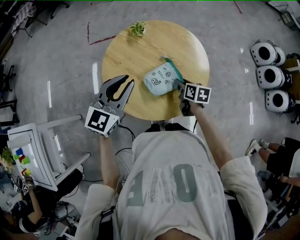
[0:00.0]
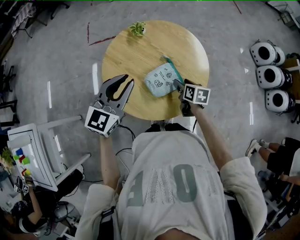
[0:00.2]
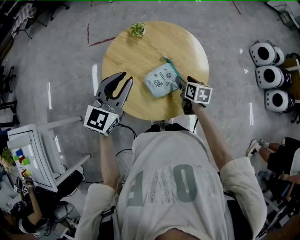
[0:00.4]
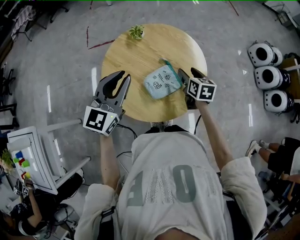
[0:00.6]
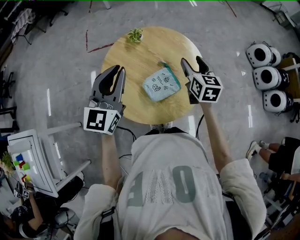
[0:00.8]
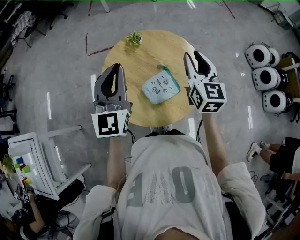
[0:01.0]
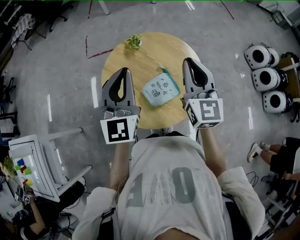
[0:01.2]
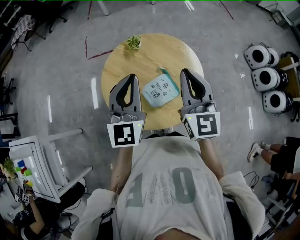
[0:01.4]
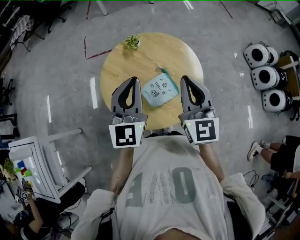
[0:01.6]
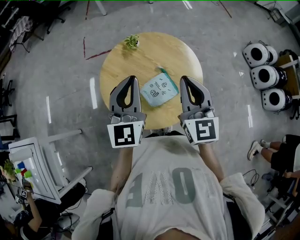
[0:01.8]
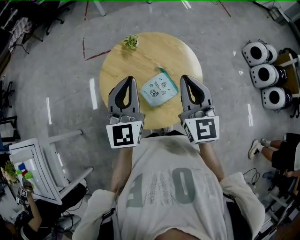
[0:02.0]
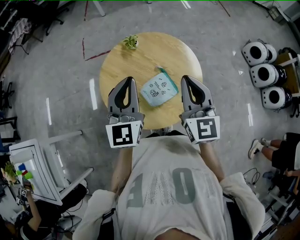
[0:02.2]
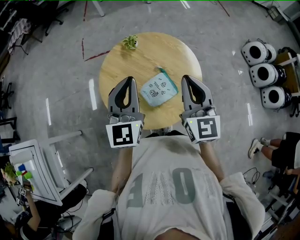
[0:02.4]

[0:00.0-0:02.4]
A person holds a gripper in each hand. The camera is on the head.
0:00.0 to 0:01.2: The left gripper is displaced upward by approximately 10 cm, and turns by some 30 degrees. The right gripper shifts approximately 30 cm upward, angles its fingers upward, by about 40 degrees, and opens, then closes once more.
0:01.2 to 0:02.4: The right gripper shifts by roughly 5 cm.

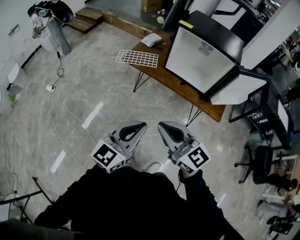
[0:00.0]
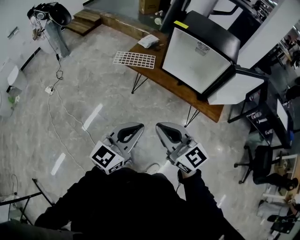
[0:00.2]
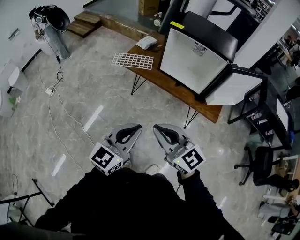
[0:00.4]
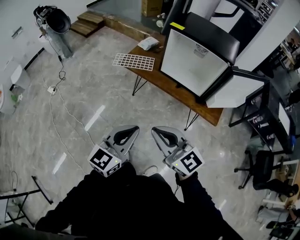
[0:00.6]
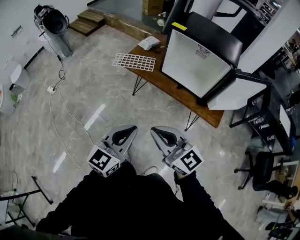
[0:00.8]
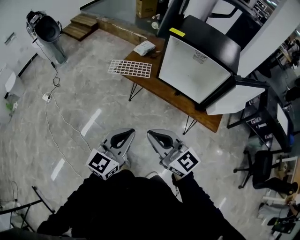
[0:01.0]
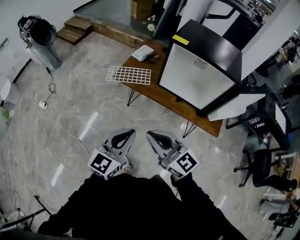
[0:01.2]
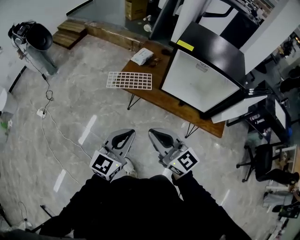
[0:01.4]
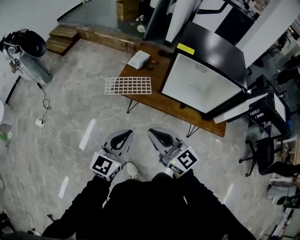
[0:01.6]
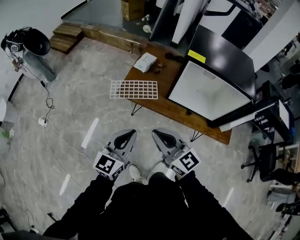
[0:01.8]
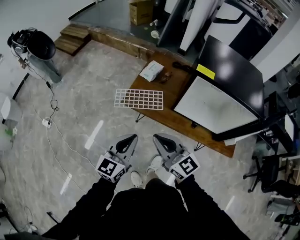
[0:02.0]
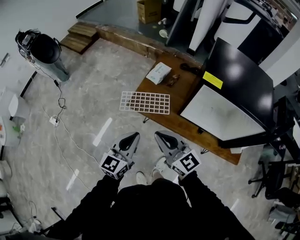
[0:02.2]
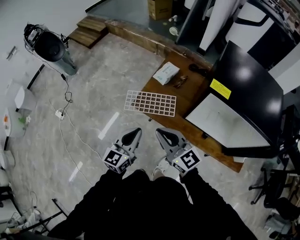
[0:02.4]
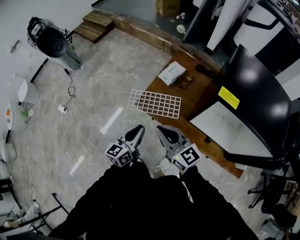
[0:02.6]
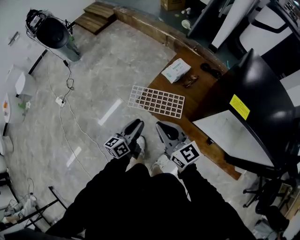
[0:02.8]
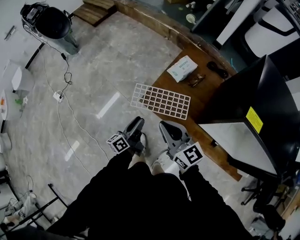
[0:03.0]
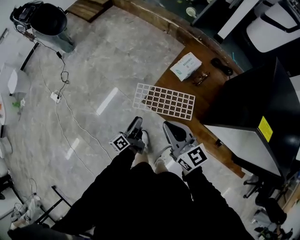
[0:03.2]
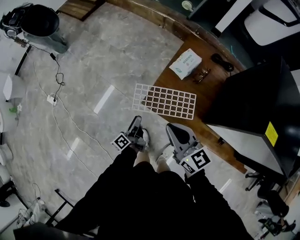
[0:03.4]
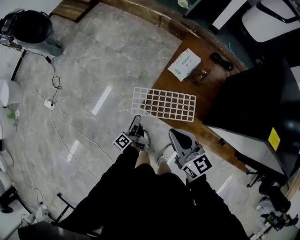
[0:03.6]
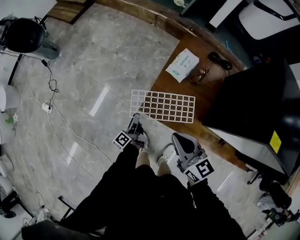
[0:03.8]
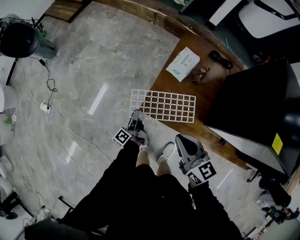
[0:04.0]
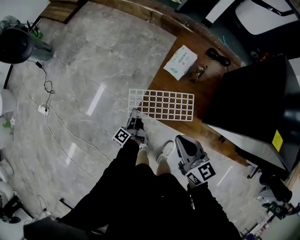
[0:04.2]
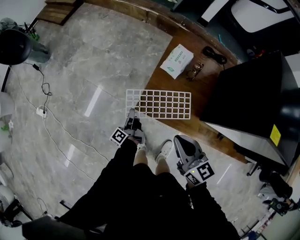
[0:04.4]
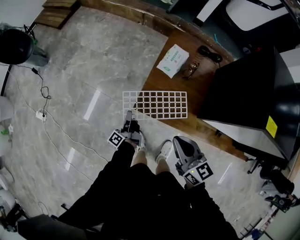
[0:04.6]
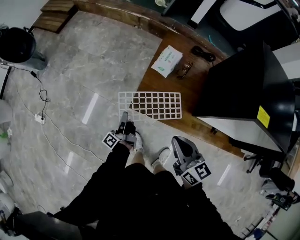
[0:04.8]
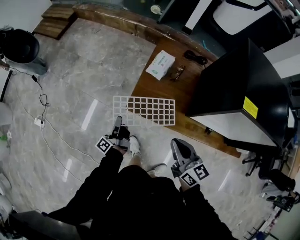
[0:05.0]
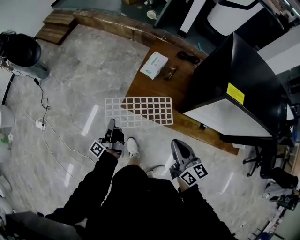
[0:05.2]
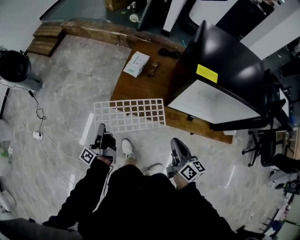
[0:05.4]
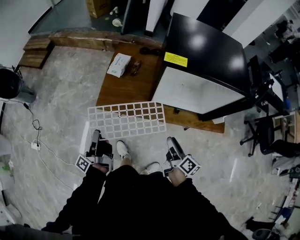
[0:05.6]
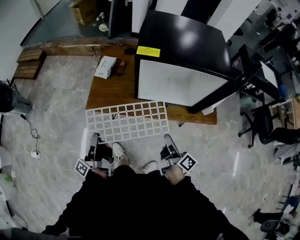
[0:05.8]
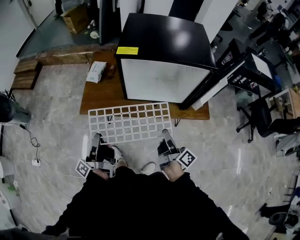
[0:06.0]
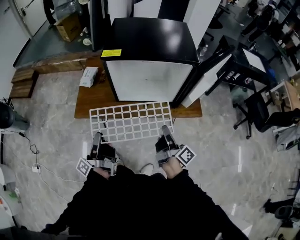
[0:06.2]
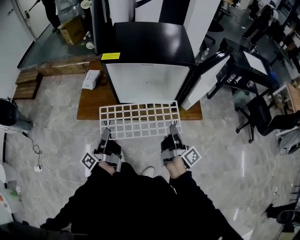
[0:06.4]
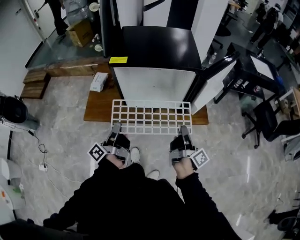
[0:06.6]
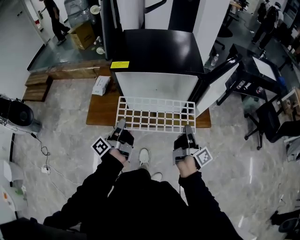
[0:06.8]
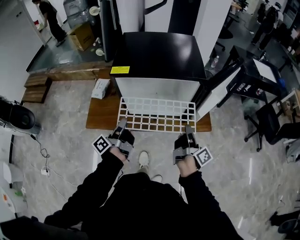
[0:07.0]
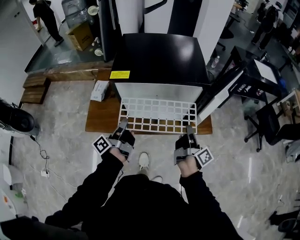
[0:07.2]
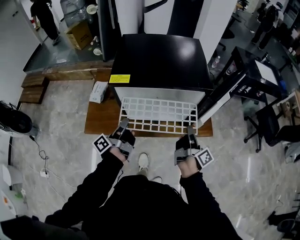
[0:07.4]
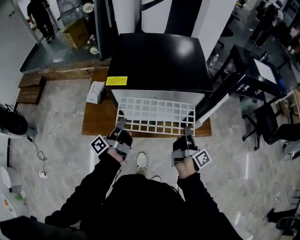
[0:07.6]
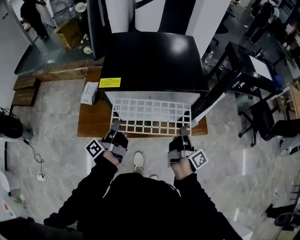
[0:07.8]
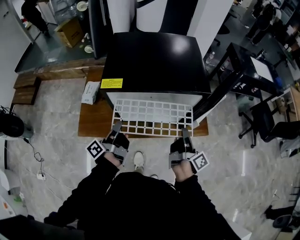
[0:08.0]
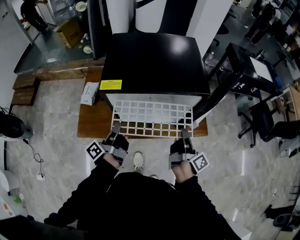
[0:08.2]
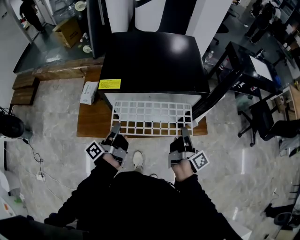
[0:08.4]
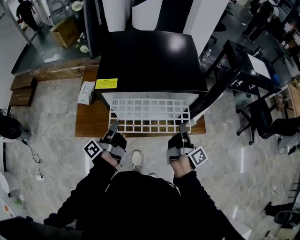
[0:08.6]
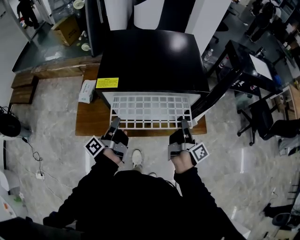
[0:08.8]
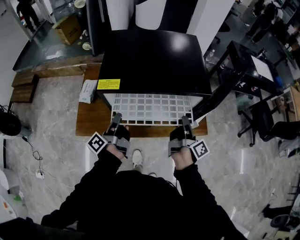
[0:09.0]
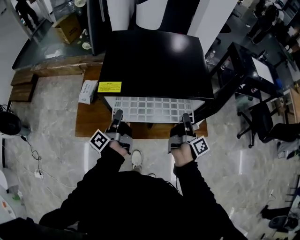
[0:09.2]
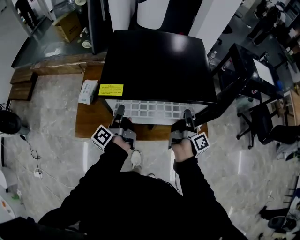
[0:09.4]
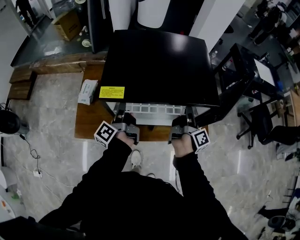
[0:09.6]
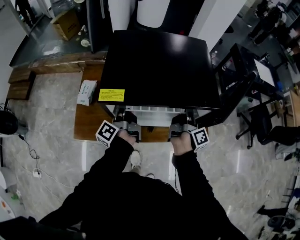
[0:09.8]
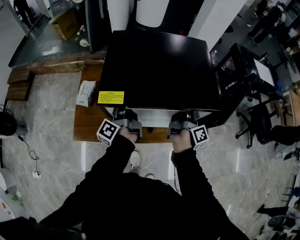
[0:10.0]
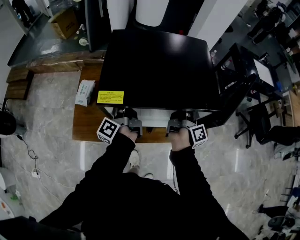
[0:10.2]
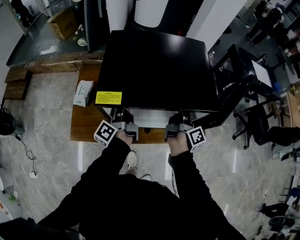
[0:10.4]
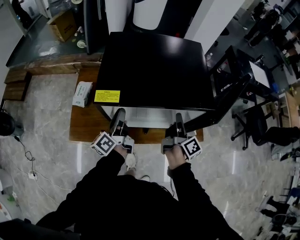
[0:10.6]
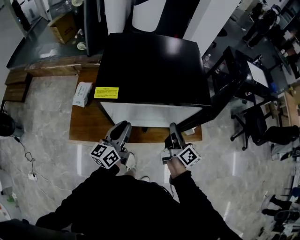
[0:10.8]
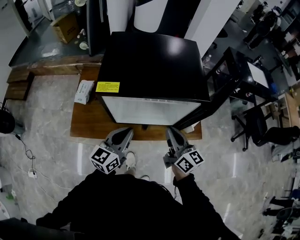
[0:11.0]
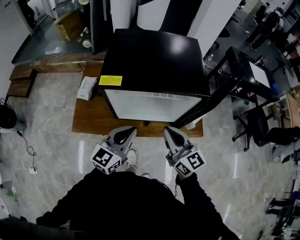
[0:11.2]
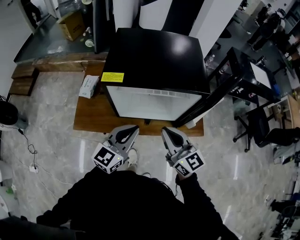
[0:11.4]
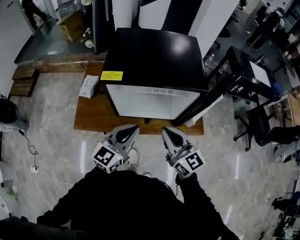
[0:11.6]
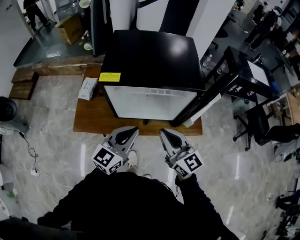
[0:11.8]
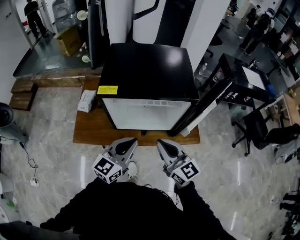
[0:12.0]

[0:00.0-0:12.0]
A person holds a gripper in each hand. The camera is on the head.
0:00.0 to 0:01.6: The grippers both shift forward by roughly 25 cm.
0:01.6 to 0:03.0: The right gripper travels forward by about 30 cm, while the left gripper travels forward and downward by approximately 40 cm, twists some 60 degrees counterclockwise, seen from behind, and opens.
0:03.0 to 0:04.4: The left gripper heads downward and forward, covering some 20 cm, rotates approximately 30 degrees, and closes. The right gripper moves downward, approximately 5 cm, and changes its angle by about 20 degrees.
0:04.4 to 0:06.0: The left gripper shifts by some 50 cm, and rotates about 30 degrees, while the right gripper goes up and down, roughly 5 cm each way, reversing 2 times, swivels approximately 70 degrees, and opens.
0:06.0 to 0:07.6: Both grippers travel together forward and to the right, some 20 cm. The left gripper turns by some 20 degrees. Meanwhile the right gripper turns by roughly 20 degrees, and closes up.
0:07.6 to 0:09.0: The right gripper heads forward, covering approximately 5 cm.
0:09.0 to 0:10.4: The two grippers go about 10 cm forward.
0:10.4 to 0:12.0: The left gripper heads backward and to the right, covering some 30 cm, and twists roughly 60 degrees clockwise, seen from behind. Meanwhile the right gripper moves backward and upward, about 25 cm, and turns by roughly 80 degrees.

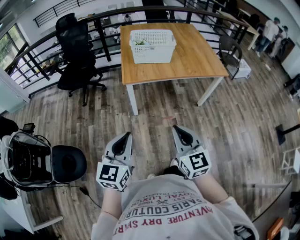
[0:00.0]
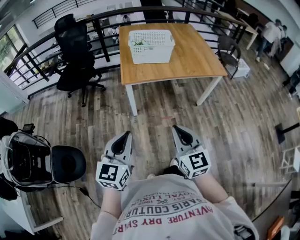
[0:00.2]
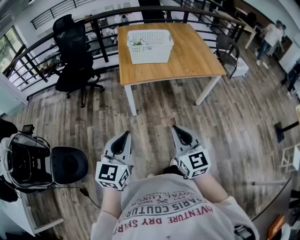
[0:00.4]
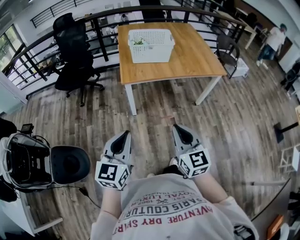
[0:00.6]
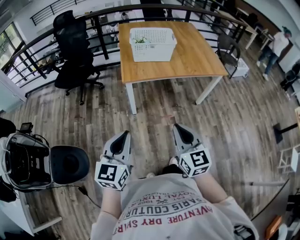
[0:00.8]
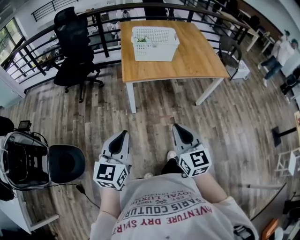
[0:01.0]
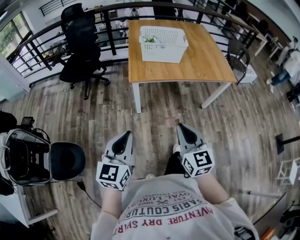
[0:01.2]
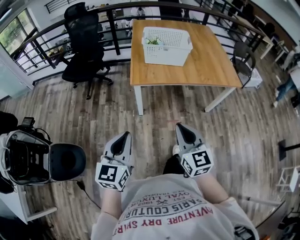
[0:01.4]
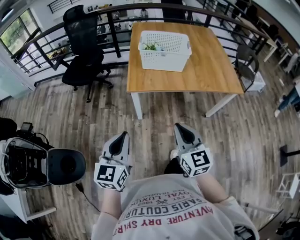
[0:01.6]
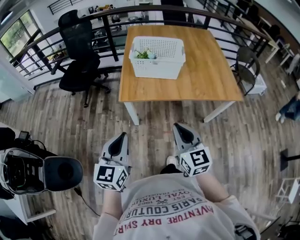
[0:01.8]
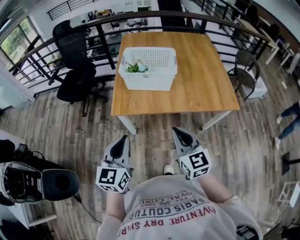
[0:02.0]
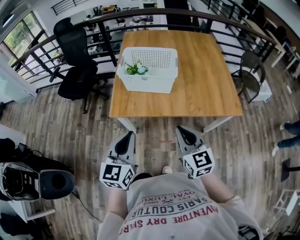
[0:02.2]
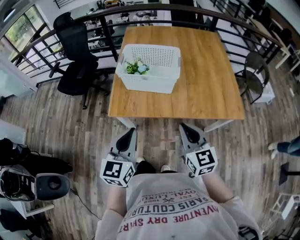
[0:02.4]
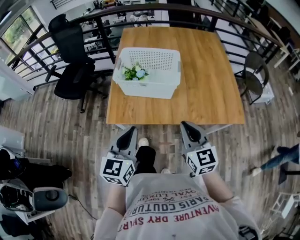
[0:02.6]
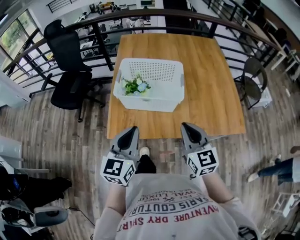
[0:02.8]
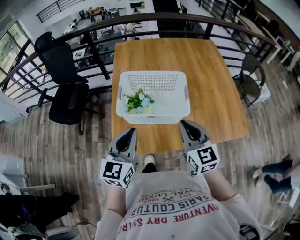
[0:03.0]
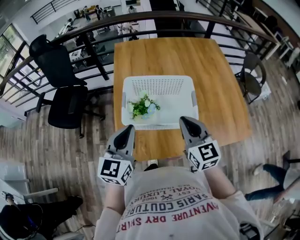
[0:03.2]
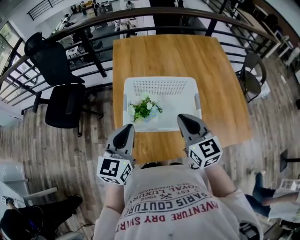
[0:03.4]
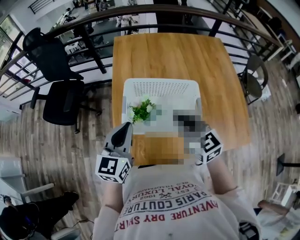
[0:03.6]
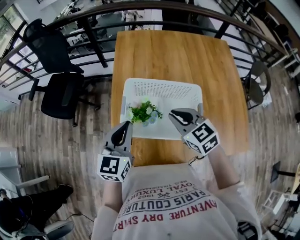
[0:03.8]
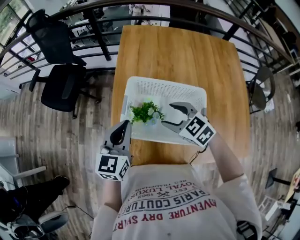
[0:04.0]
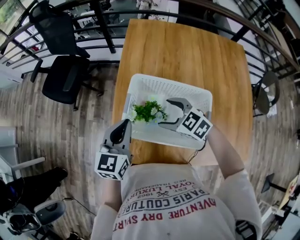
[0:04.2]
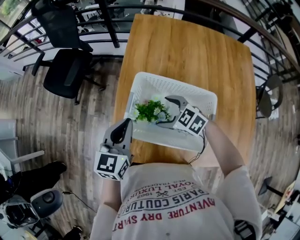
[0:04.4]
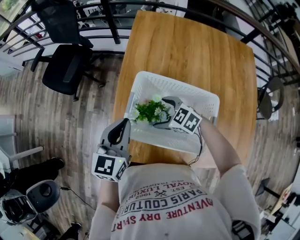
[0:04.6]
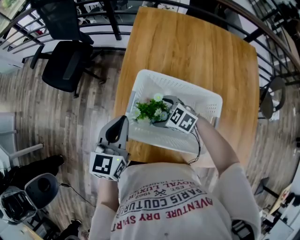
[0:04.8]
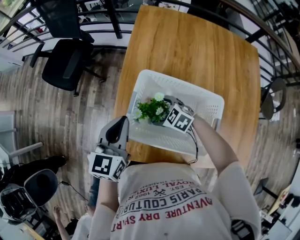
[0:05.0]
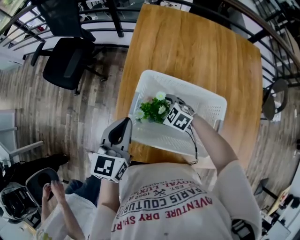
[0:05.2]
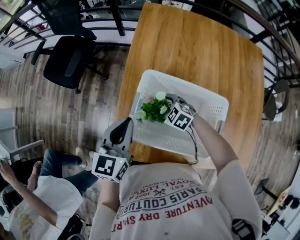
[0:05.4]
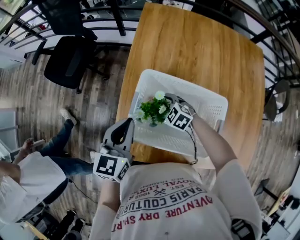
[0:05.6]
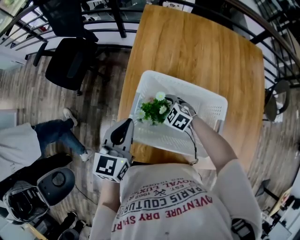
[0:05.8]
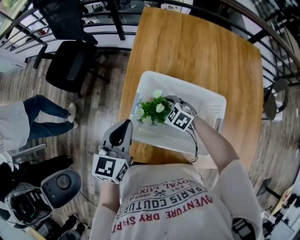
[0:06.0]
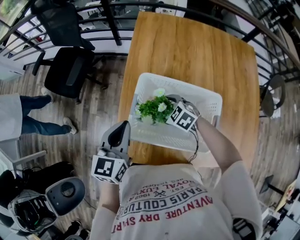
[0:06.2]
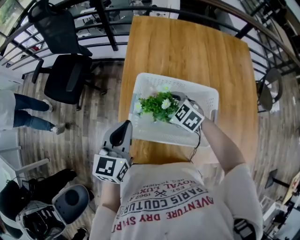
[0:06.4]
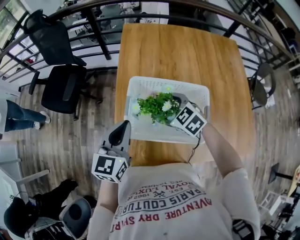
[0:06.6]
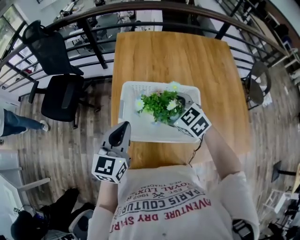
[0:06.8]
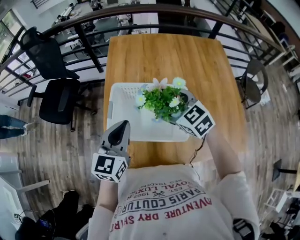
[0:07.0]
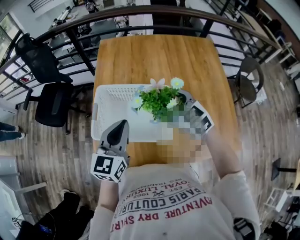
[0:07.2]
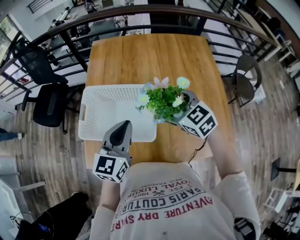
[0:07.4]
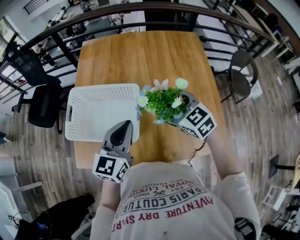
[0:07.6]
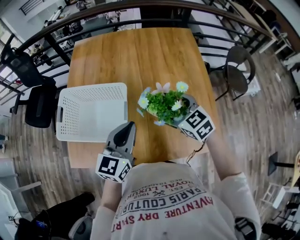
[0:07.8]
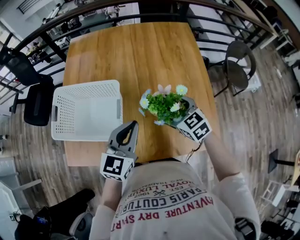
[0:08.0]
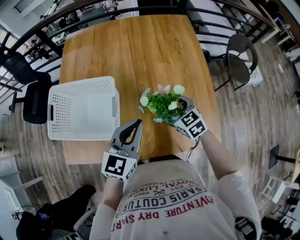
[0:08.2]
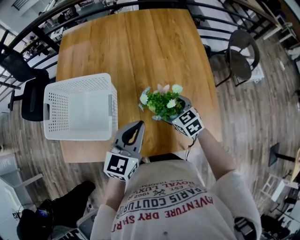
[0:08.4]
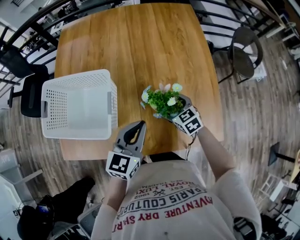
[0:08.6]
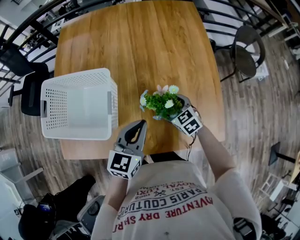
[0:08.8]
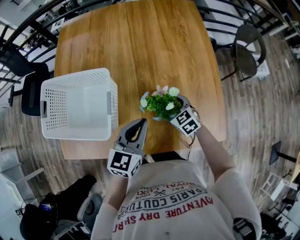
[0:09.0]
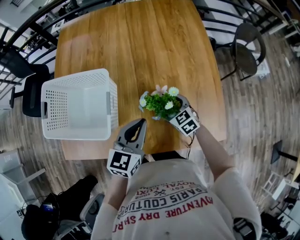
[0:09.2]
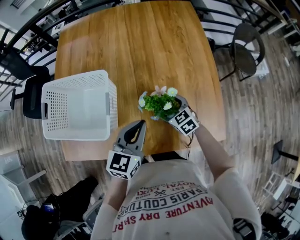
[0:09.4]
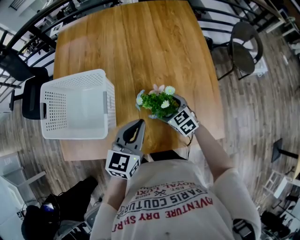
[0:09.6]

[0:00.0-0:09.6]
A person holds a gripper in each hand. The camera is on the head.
0:00.0 to 0:01.6: The grippers both shift forward by about 15 cm.
0:01.6 to 0:03.2: The pair of grippers is taken forward, about 40 cm.
0:03.2 to 0:04.8: The right gripper shifts approximately 25 cm downward, tilts its fingers roughly 40 degrees downward, and opens its fingers, while the left gripper shifts by about 10 cm.
0:04.8 to 0:06.4: The right gripper heads upward, covering roughly 5 cm.
0:06.4 to 0:08.0: The pair of grippers is taken to the right, roughly 40 cm. The right gripper turns by some 30 degrees.
0:08.0 to 0:09.6: The right gripper travels downward by roughly 15 cm. Meanwhile the left gripper heads downward and to the right, covering approximately 10 cm.
